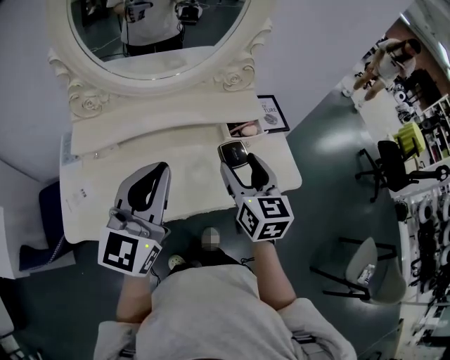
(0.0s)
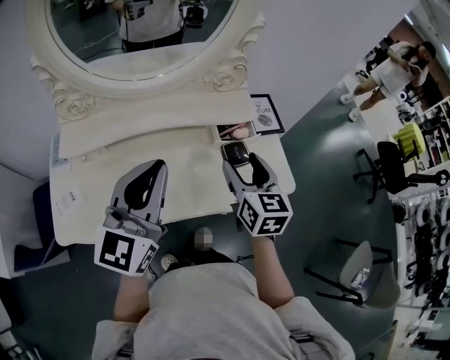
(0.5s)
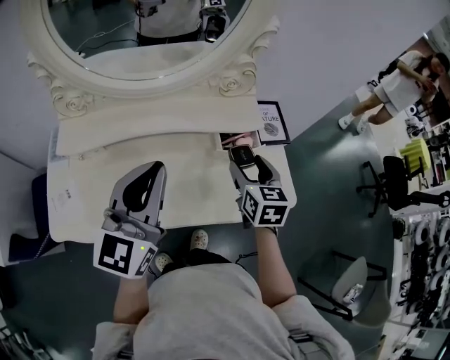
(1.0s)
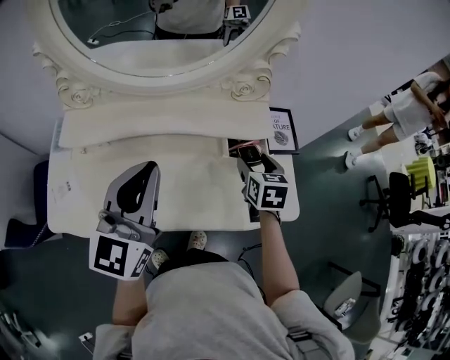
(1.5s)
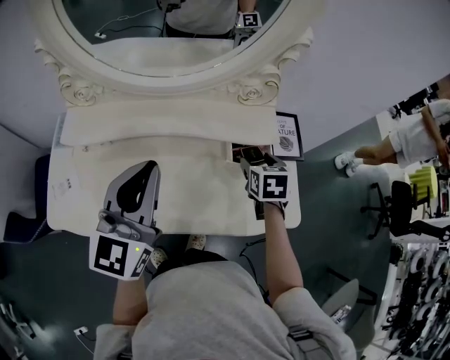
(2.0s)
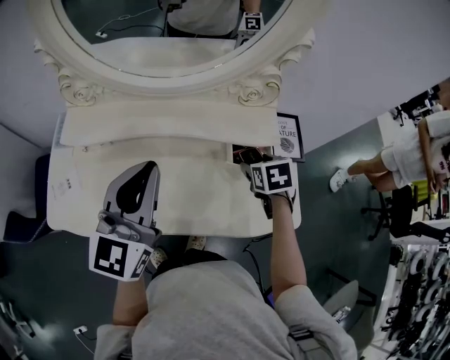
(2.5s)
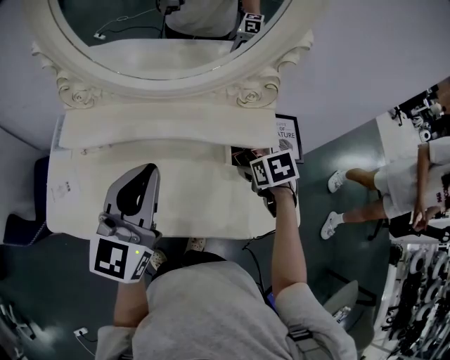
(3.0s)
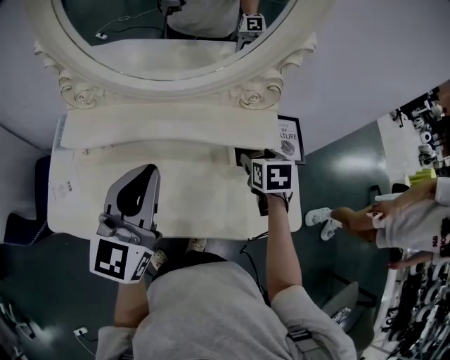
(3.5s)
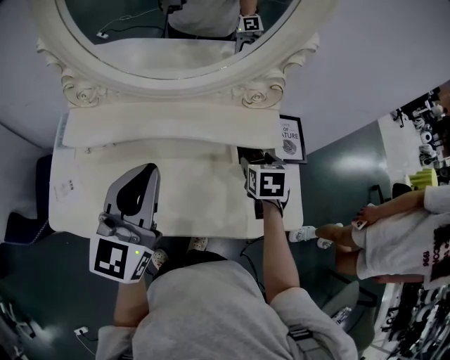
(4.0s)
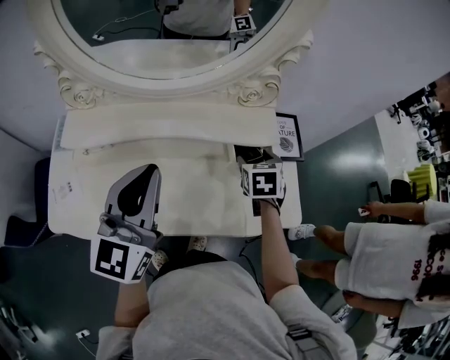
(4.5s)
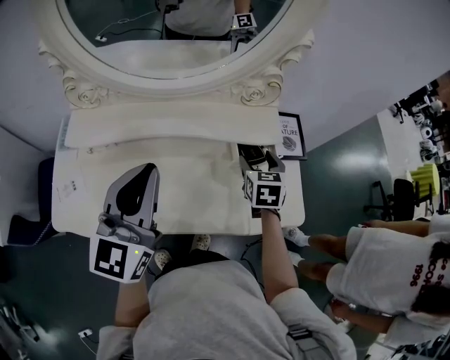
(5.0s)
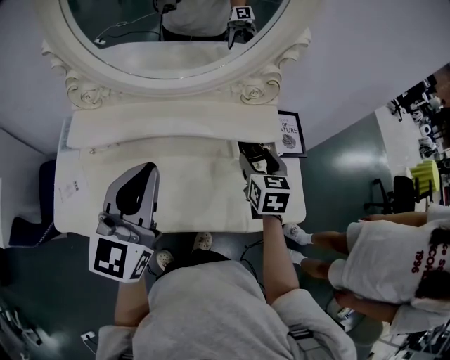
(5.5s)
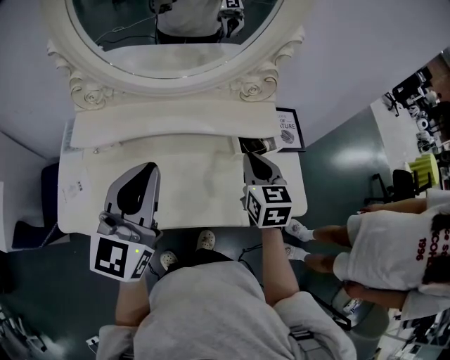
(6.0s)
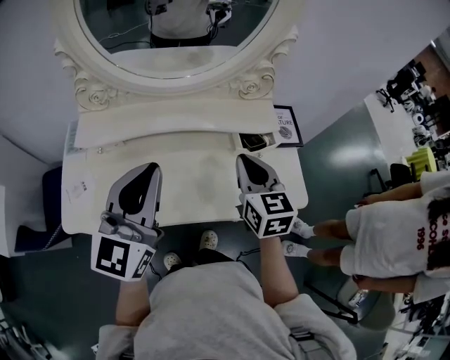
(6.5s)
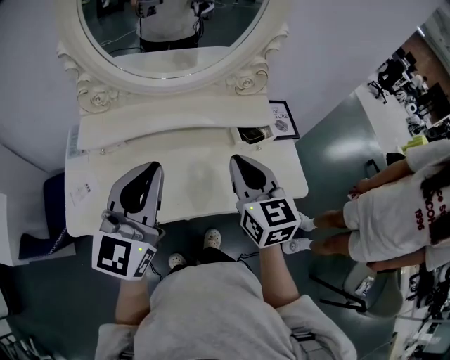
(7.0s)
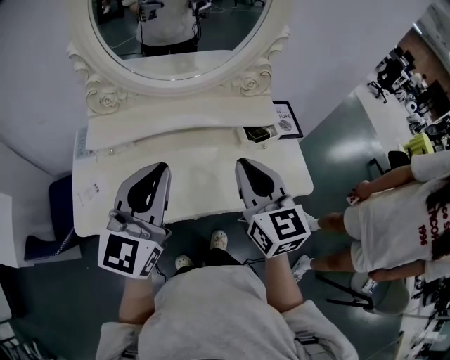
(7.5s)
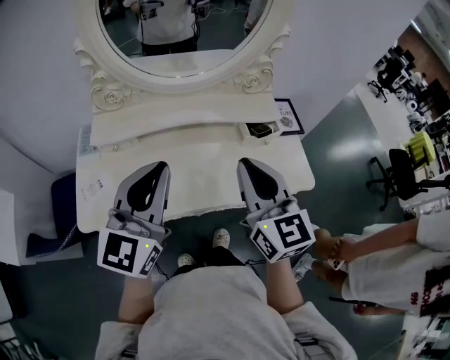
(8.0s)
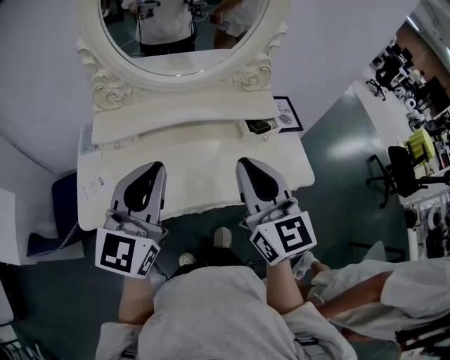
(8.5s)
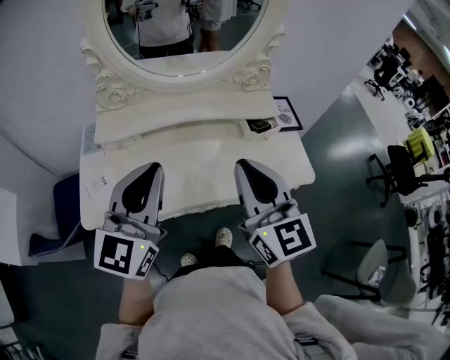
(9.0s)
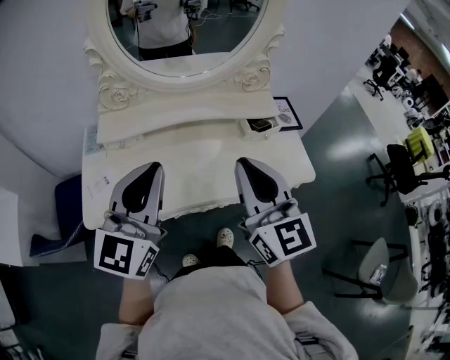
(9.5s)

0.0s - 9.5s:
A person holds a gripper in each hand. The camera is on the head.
0.0s - 2.0s: The left gripper is displaced forward by roughly 10 cm. Meanwhile the right gripper travels forward, downward and to the right by approximately 25 cm, and tilts its fingers about 40 degrees downward.
4.0s - 5.5s: The right gripper changes place by roughly 5 cm.
5.5s - 7.5s: The left gripper is displaced backward by roughly 10 cm; the right gripper travels backward, upward and to the left by some 25 cm, swivels approximately 30 degrees, and closes up.
7.5s - 9.5s: The right gripper heads backward and upward, covering approximately 10 cm, while the left gripper goes some 5 cm backward.

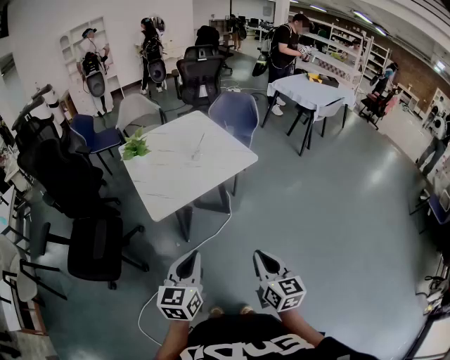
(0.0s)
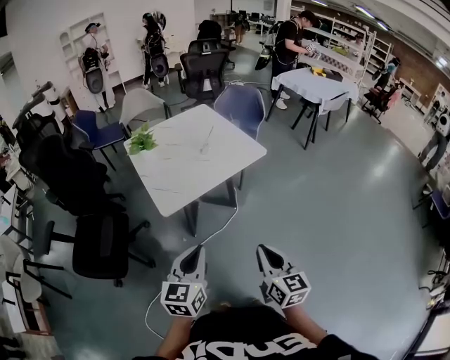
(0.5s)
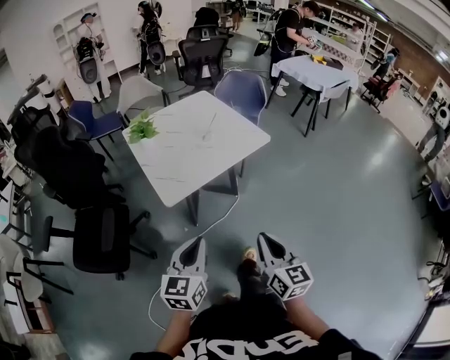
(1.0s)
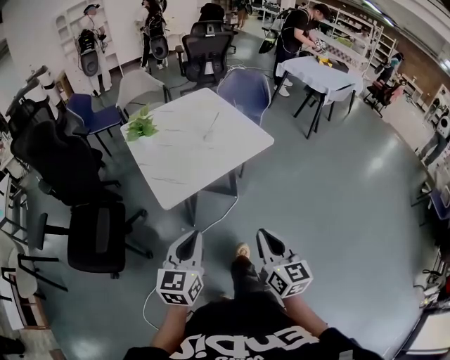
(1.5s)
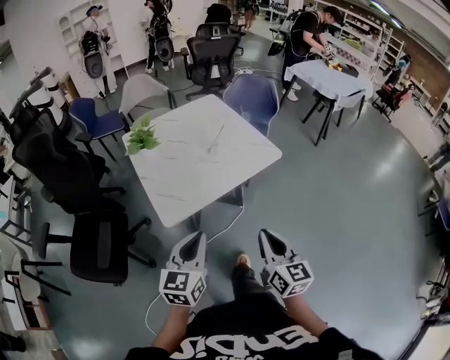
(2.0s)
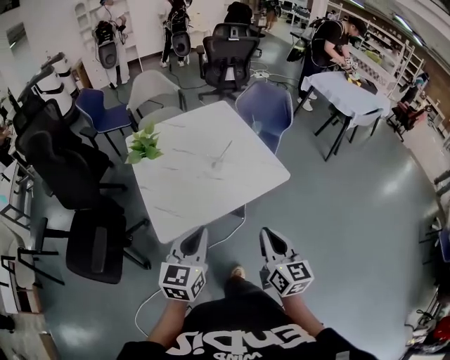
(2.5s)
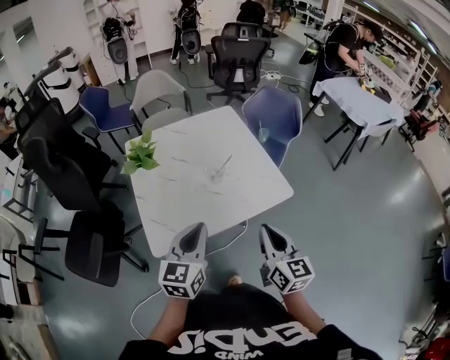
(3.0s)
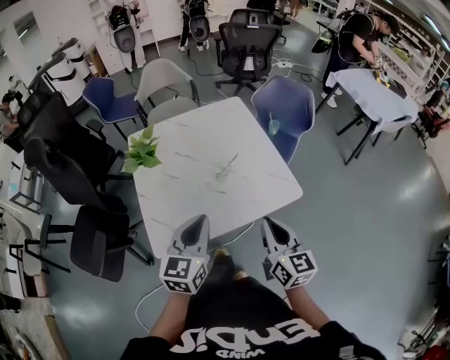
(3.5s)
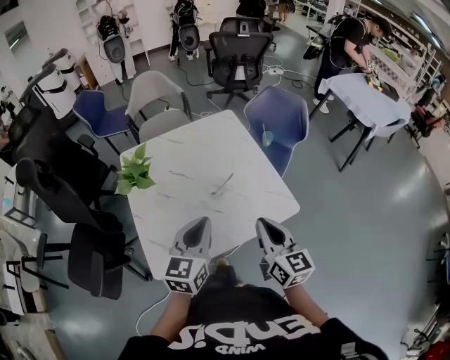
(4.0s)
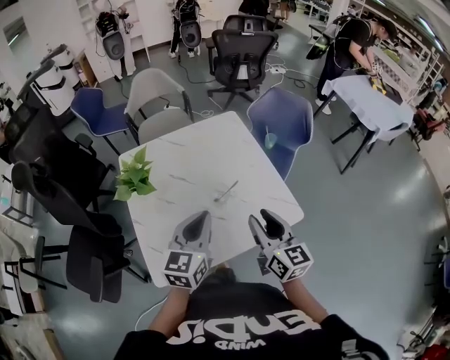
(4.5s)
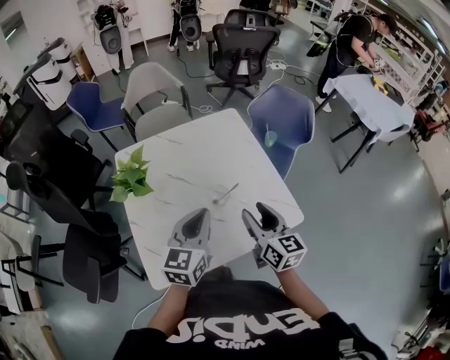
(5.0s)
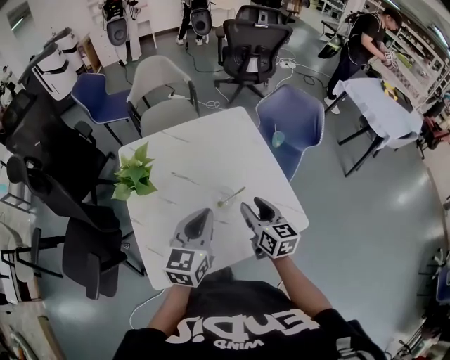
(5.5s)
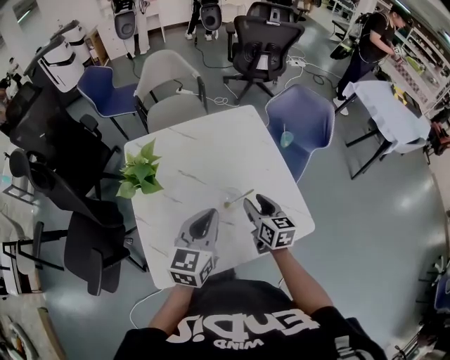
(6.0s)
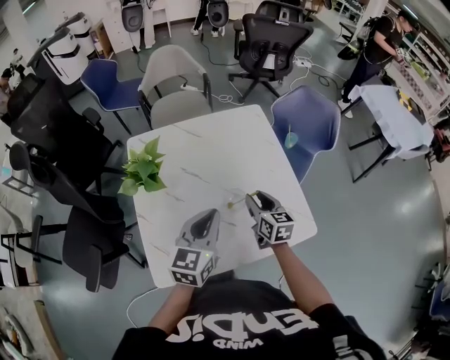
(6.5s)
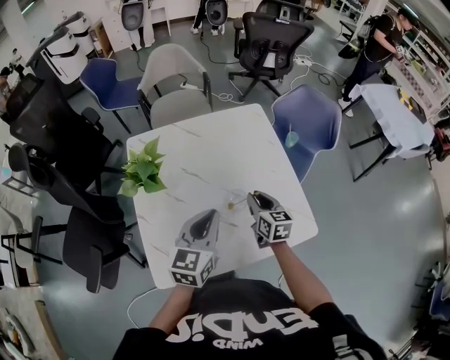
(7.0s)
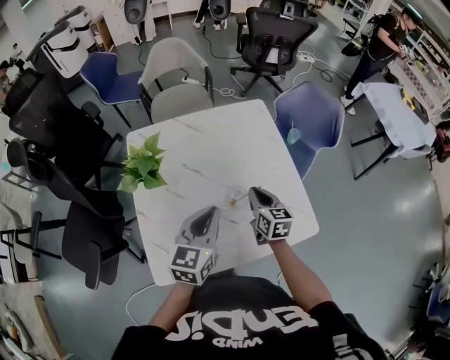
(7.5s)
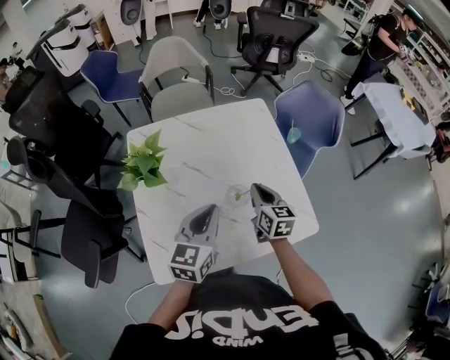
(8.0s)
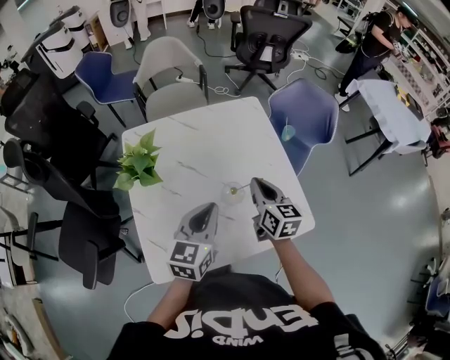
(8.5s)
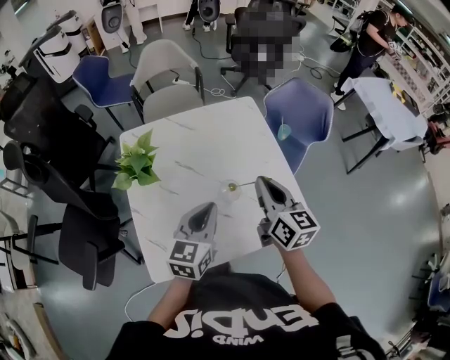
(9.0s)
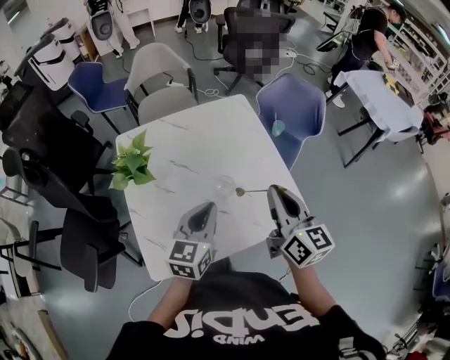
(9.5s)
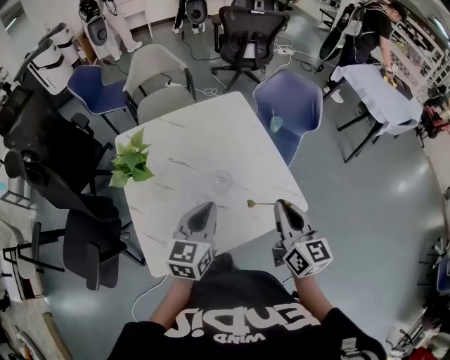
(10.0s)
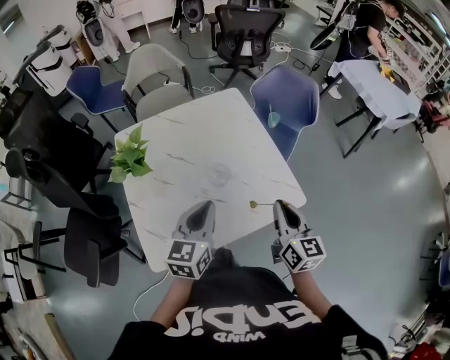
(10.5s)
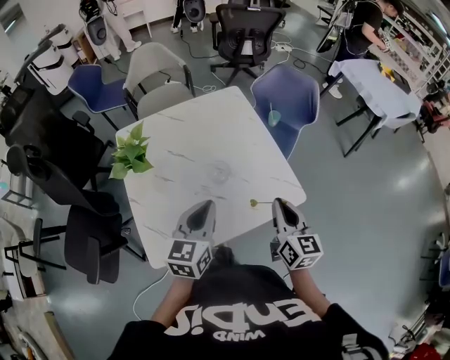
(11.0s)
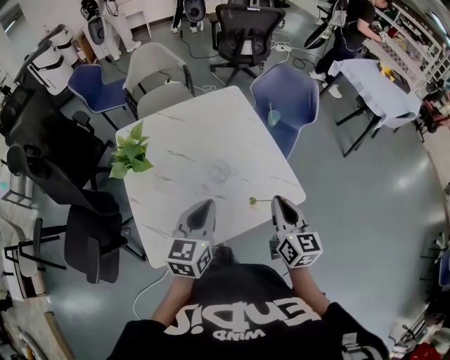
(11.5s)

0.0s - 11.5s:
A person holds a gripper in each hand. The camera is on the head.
0.0s - 2.0s: Both grippers move forward and to the left, approximately 15 cm.
2.0s - 4.0s: Both grippers travel together forward, roughly 35 cm.
4.0s - 6.0s: The right gripper heads forward and downward, covering roughly 25 cm, and opens. The left gripper goes about 10 cm forward.
6.0s - 7.5s: The right gripper closes its fingers.
7.5s - 9.5s: The right gripper is displaced upward and backward by approximately 20 cm, and changes its angle by approximately 20 degrees.
9.5s - 11.5s: The left gripper shifts approximately 5 cm backward; the right gripper moves downward, backward and to the right, roughly 10 cm.

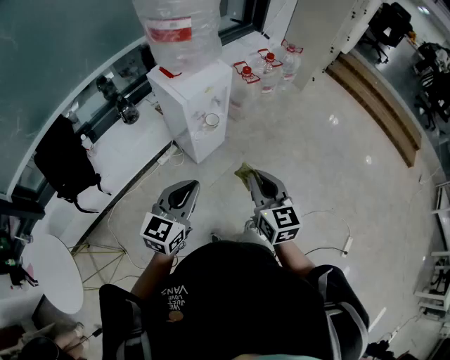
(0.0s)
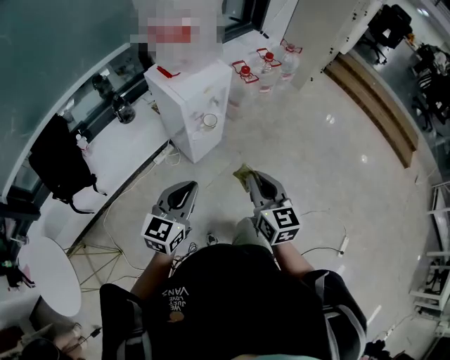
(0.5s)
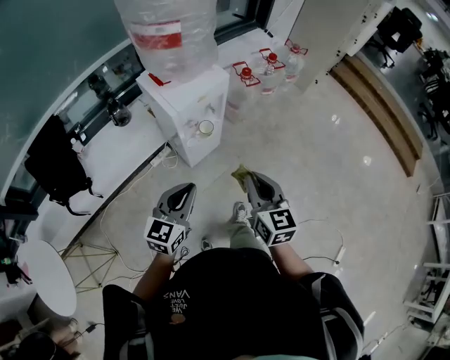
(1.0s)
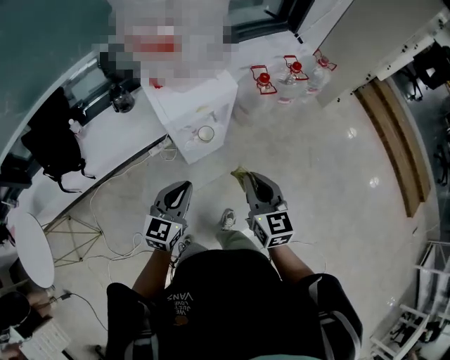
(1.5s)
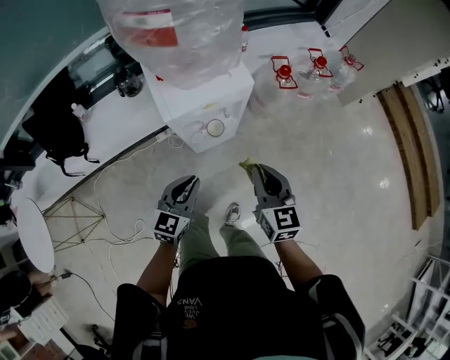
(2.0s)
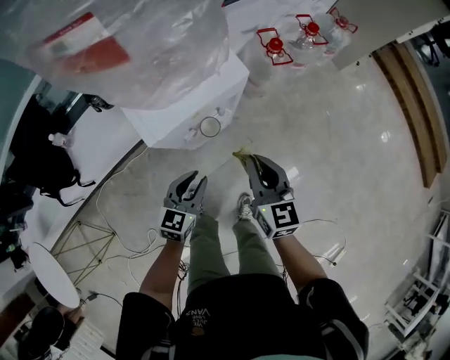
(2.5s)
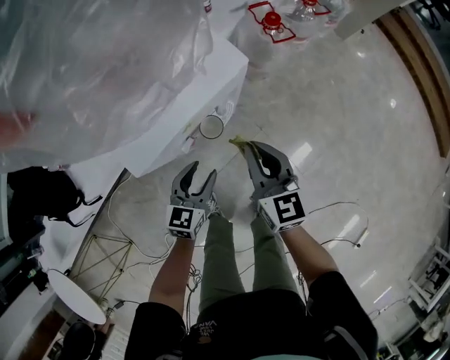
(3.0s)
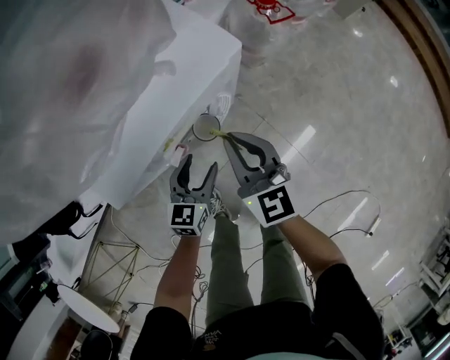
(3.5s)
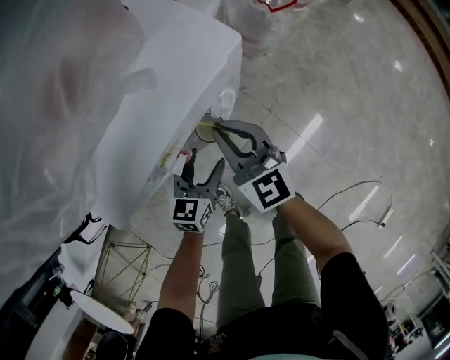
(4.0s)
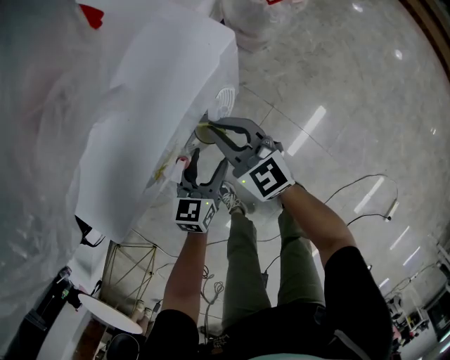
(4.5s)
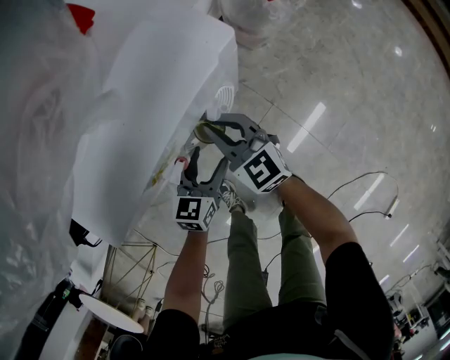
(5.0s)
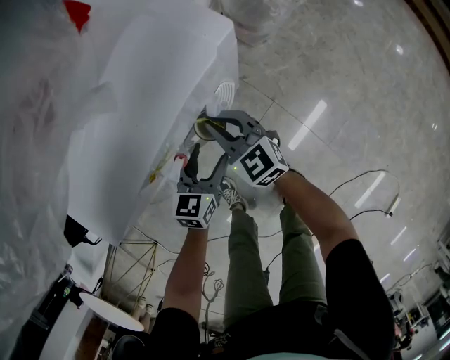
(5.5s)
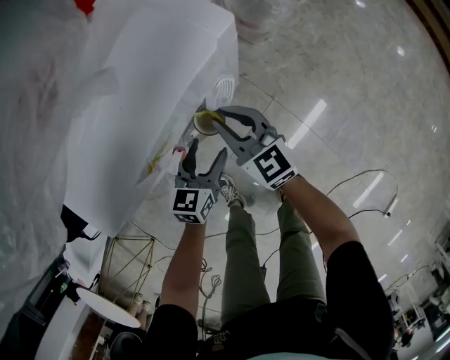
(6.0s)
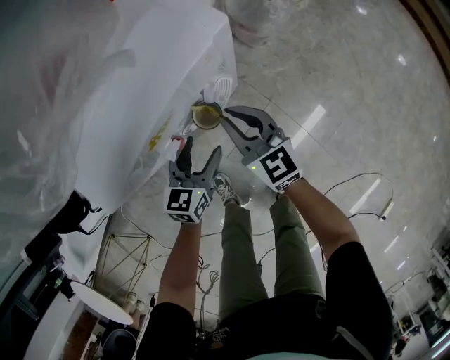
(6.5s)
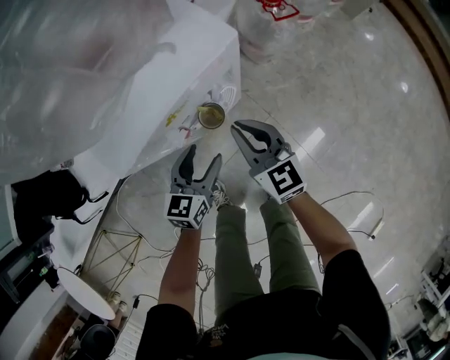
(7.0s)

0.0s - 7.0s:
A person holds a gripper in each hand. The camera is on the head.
0.0s - 2.0s: The left gripper travels forward and downward by some 30 cm, and changes its angle by about 20 degrees. The right gripper travels forward by some 30 cm.
2.0s - 3.5s: The right gripper is displaced downward, forward and to the left by about 25 cm; the left gripper shifts approximately 30 cm downward and forward, and opens up.
3.5s - 5.0s: The right gripper shifts roughly 10 cm downward and to the left. The left gripper goes some 5 cm downward.
5.0s - 7.0s: The left gripper goes approximately 10 cm upward. Meanwhile the right gripper goes roughly 10 cm upward, to the right and backward.
